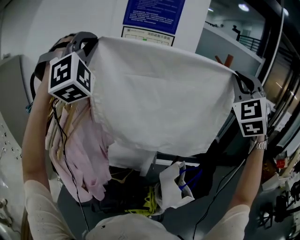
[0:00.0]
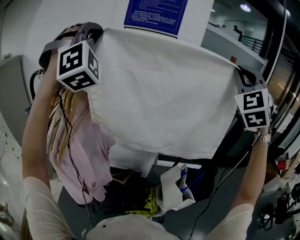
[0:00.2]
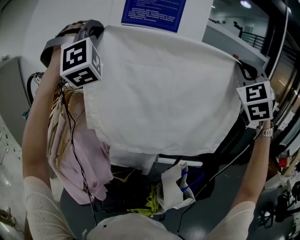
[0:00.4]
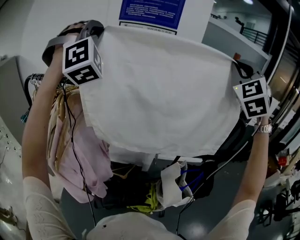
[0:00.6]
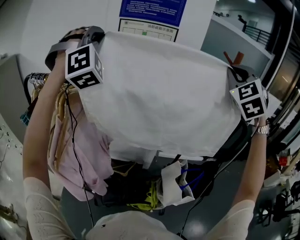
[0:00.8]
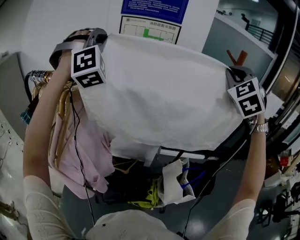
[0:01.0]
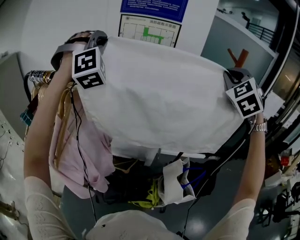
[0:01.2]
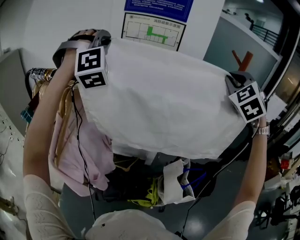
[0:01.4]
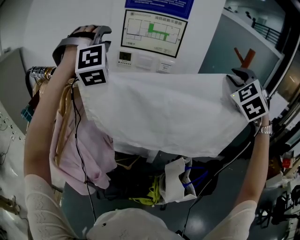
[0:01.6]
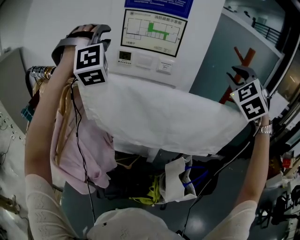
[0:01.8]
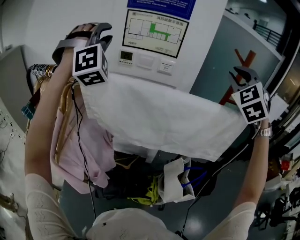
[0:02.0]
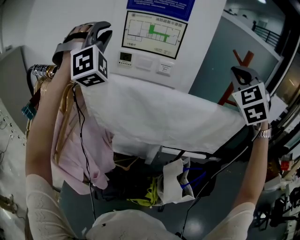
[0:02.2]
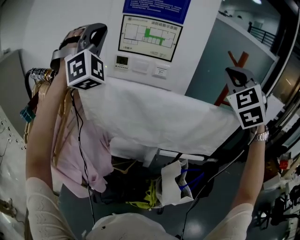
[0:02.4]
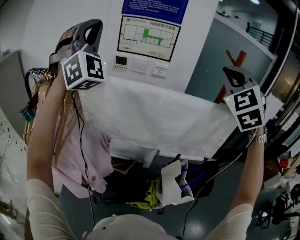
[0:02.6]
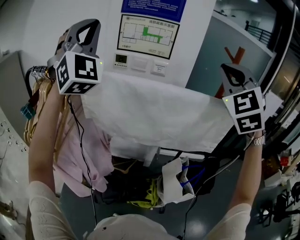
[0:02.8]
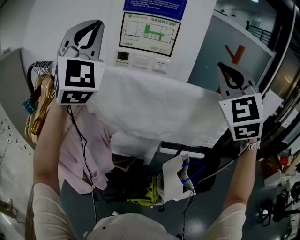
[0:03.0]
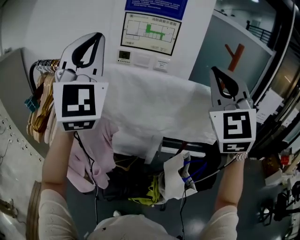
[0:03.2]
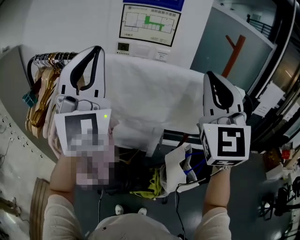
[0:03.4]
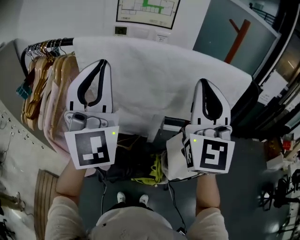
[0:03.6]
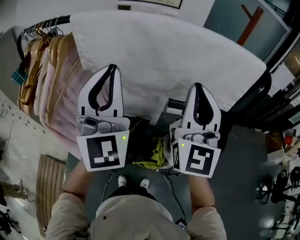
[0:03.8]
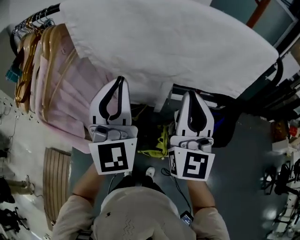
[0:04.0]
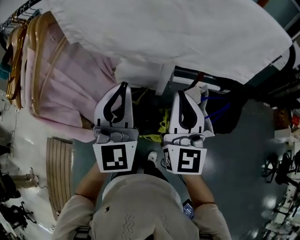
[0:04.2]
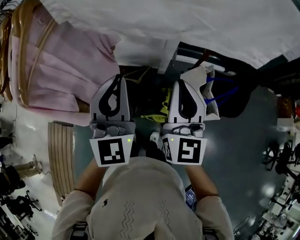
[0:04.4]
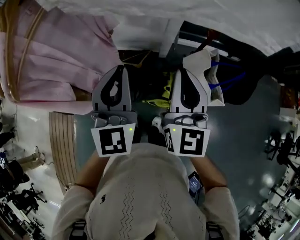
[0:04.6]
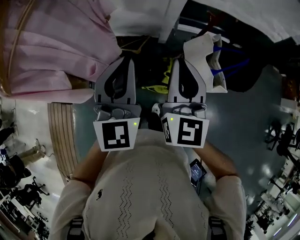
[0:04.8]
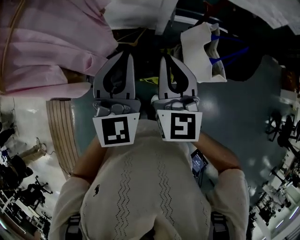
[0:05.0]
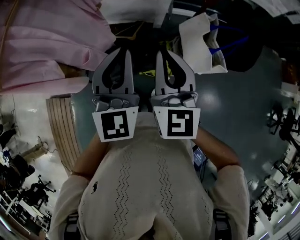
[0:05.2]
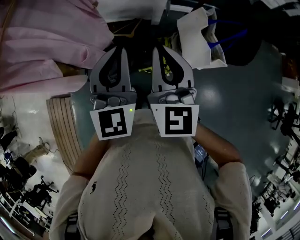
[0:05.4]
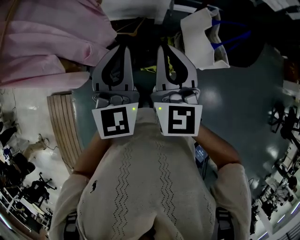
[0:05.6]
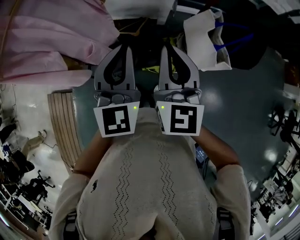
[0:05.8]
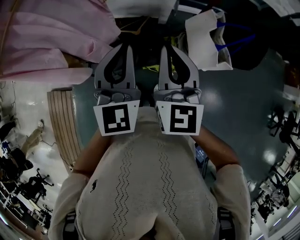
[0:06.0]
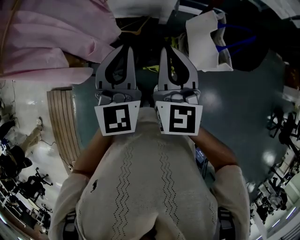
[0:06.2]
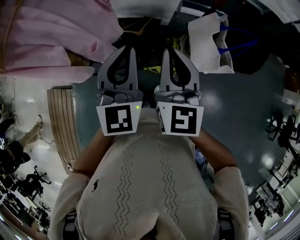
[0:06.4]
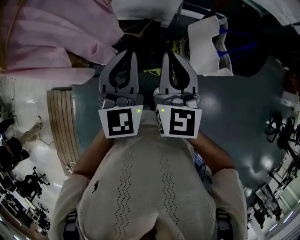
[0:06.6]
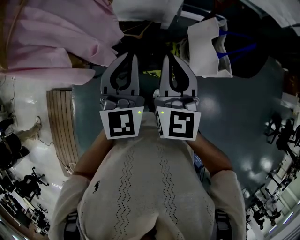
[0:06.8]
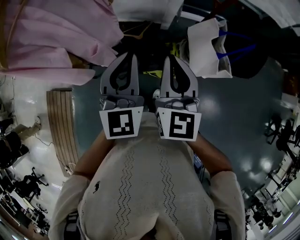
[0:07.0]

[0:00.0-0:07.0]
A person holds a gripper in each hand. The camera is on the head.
0:00.0 to 0:01.4: The right gripper moves forward and downward, about 20 cm, and changes its angle by some 30 degrees, while the left gripper is displaced forward by roughly 15 cm.
0:01.4 to 0:02.8: The left gripper travels backward and upward by roughly 15 cm, points its fingers some 30 degrees further upward, and opens, then closes again; the right gripper is displaced backward and to the left by some 10 cm.
0:02.8 to 0:04.2: Both grippers travel together downward, approximately 35 cm. The left gripper rolls counterclockwise, seen from behind, by about 50 degrees; the right gripper twists roughly 60 degrees clockwise, seen from behind.
0:04.2 to 0:05.6: Both grippers move downward and backward, about 15 cm.
0:05.6 to 0:07.0: There are only small adjustments of the grippers.

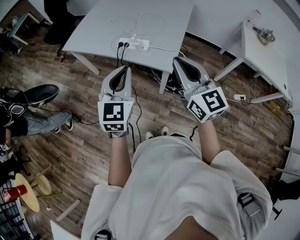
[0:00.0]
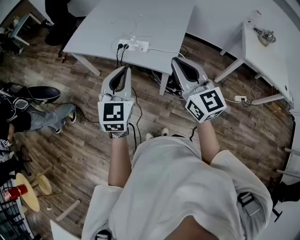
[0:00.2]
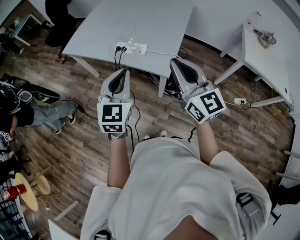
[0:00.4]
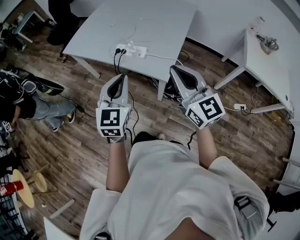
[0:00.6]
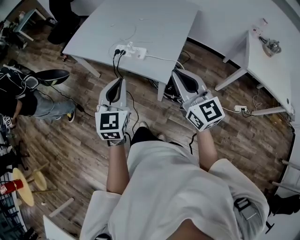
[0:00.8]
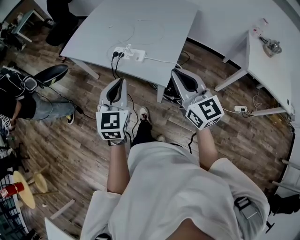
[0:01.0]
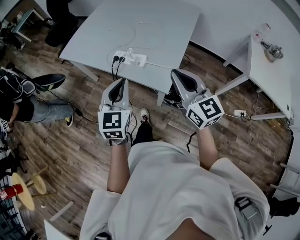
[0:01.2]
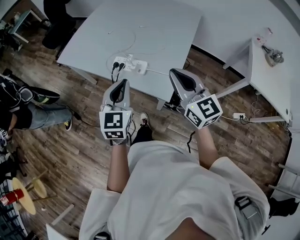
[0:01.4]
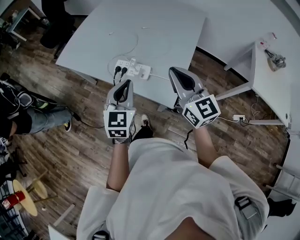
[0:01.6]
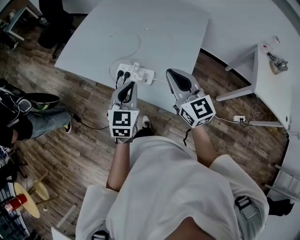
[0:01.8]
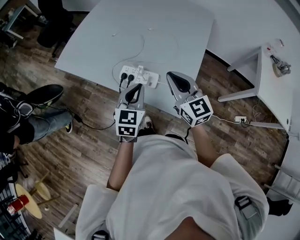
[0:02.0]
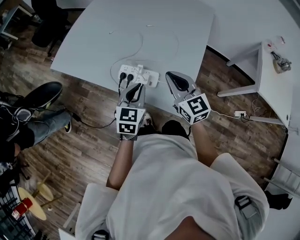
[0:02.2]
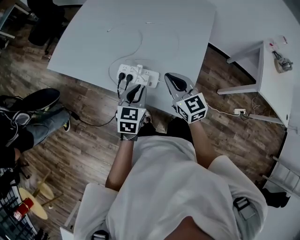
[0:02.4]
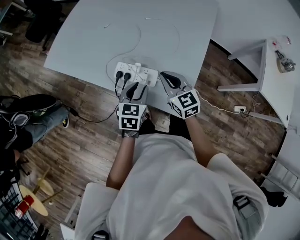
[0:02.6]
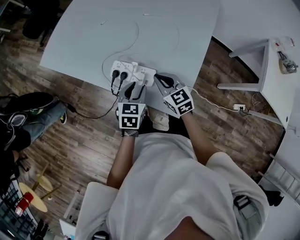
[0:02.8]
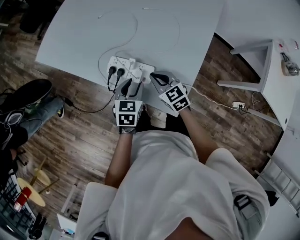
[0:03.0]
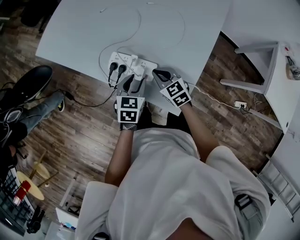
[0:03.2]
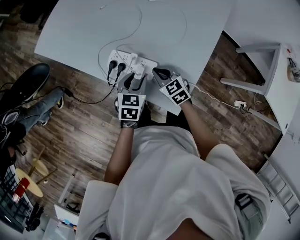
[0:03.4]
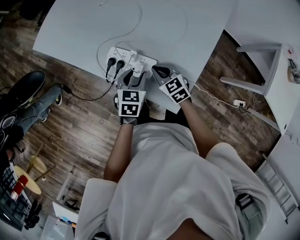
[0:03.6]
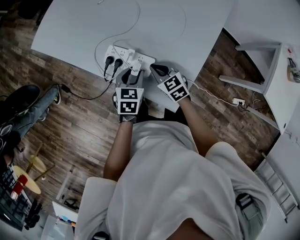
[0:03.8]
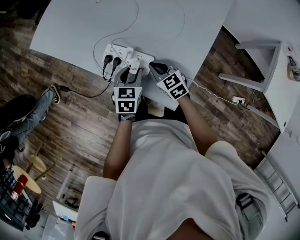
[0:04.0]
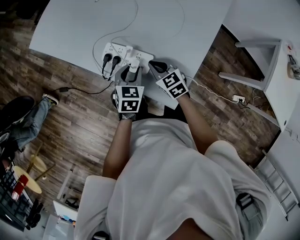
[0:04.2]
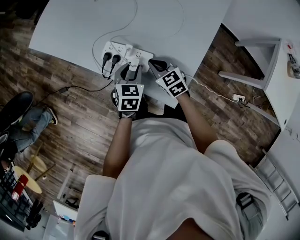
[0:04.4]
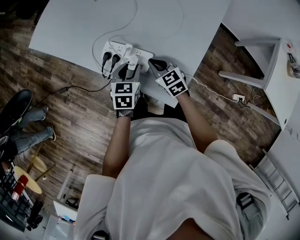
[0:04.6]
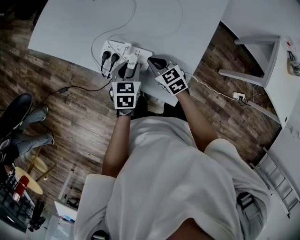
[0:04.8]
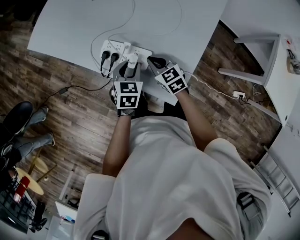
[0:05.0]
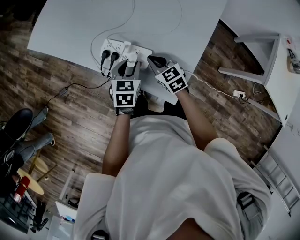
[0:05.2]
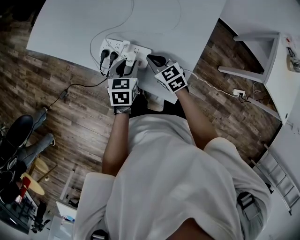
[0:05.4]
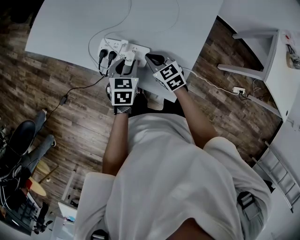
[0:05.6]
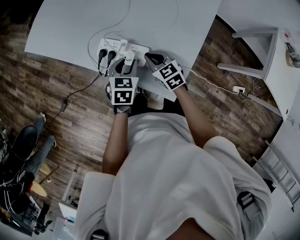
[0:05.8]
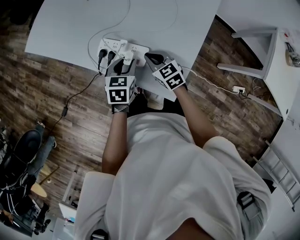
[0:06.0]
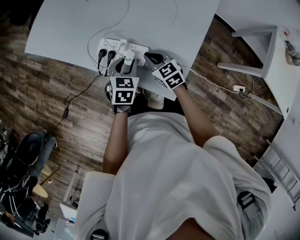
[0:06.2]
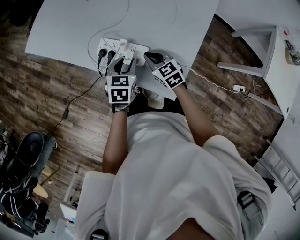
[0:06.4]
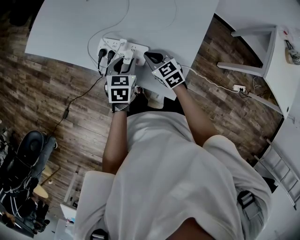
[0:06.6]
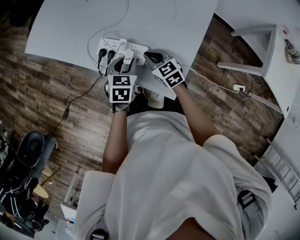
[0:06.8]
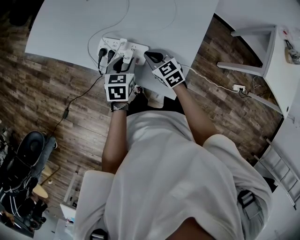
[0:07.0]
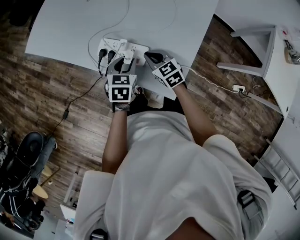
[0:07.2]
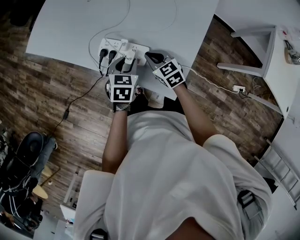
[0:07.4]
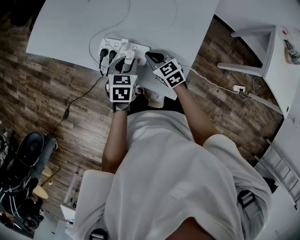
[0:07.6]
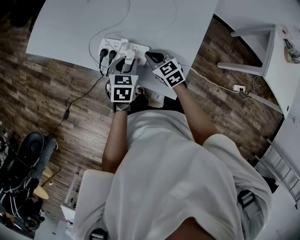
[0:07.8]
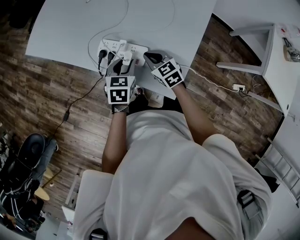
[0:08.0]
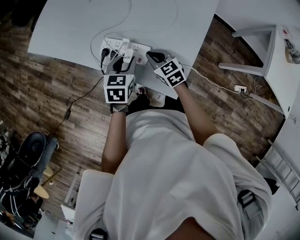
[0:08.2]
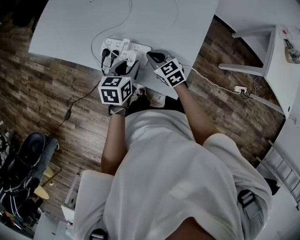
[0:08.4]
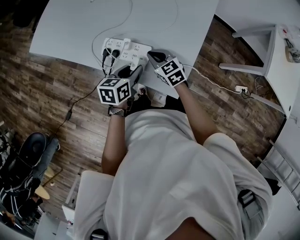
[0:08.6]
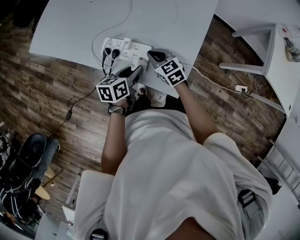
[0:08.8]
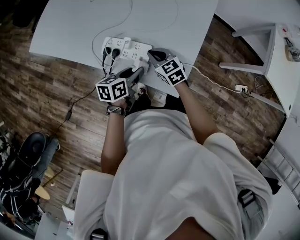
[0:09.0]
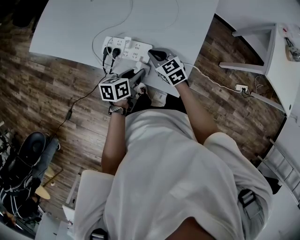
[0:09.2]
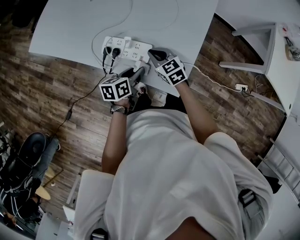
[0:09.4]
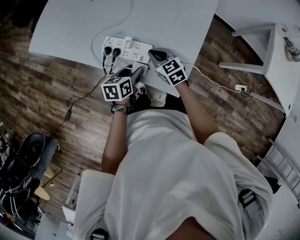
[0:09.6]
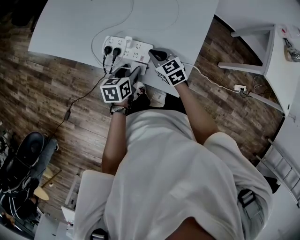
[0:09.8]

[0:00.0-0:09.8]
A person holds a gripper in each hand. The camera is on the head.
0:00.0 to 0:01.4: The right gripper heads forward, covering about 15 cm; the left gripper travels forward and downward by about 15 cm.
0:01.4 to 0:02.8: Both grippers move downward and forward, roughly 30 cm. The left gripper swivels approximately 30 degrees, and opens up. The right gripper rotates some 30 degrees.
0:02.8 to 0:04.2: The right gripper goes about 10 cm downward. Meanwhile the left gripper goes approximately 5 cm downward.
0:04.2 to 0:07.0: The grippers move only a little.
0:07.0 to 0:08.4: The grippers stay close to where they were, moving slightly.
0:08.4 to 0:09.8: The left gripper goes about 5 cm downward, and opens.

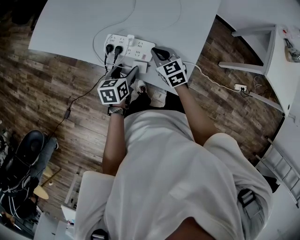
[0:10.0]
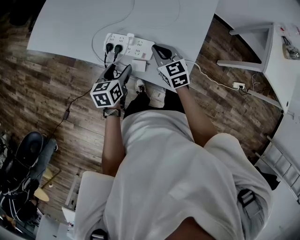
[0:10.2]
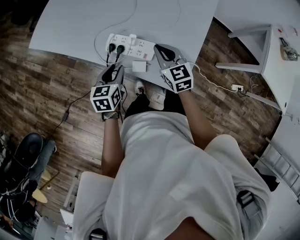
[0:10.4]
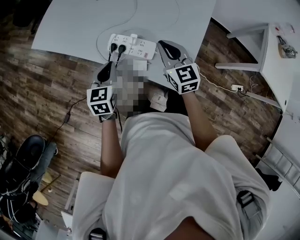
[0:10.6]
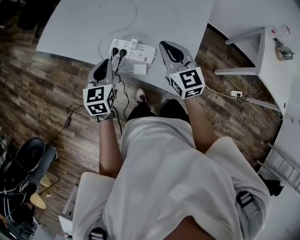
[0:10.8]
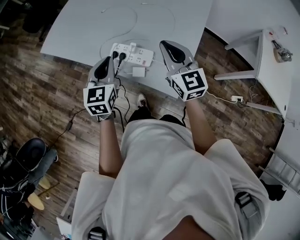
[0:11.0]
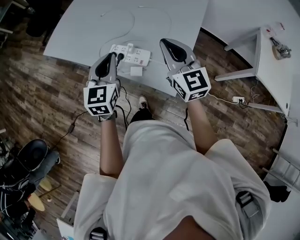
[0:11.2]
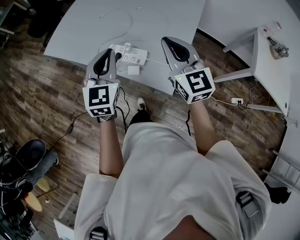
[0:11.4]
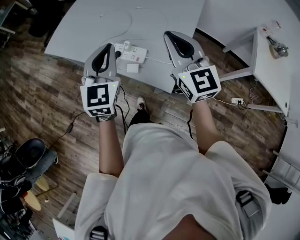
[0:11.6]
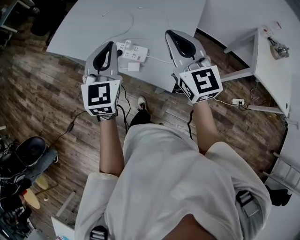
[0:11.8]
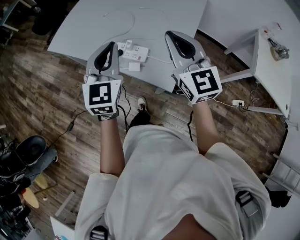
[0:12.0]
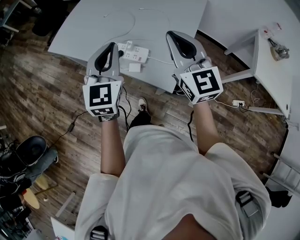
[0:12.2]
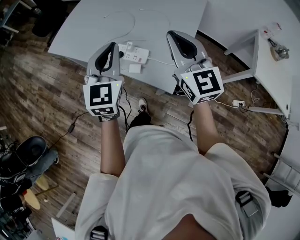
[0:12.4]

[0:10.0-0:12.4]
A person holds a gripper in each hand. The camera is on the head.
0:10.0 to 0:11.2: Both grippers move upward, some 25 cm. The right gripper tilts its fingers approximately 30 degrees upward. The left gripper turns by approximately 40 degrees, and closes up.
0:11.2 to 0:12.4: The grippers both shift upward by approximately 10 cm.

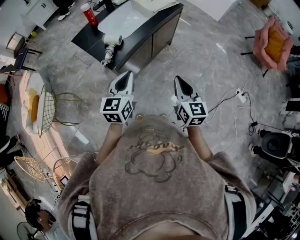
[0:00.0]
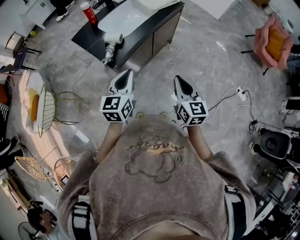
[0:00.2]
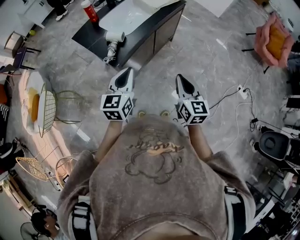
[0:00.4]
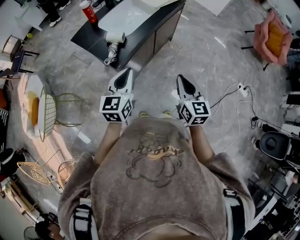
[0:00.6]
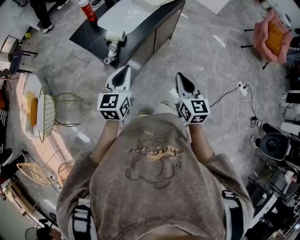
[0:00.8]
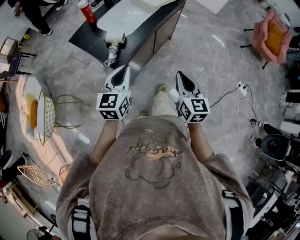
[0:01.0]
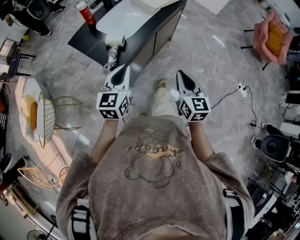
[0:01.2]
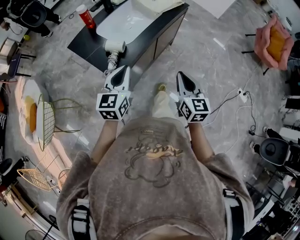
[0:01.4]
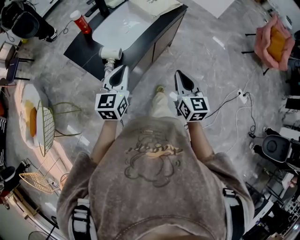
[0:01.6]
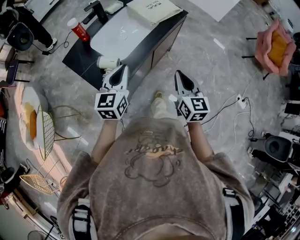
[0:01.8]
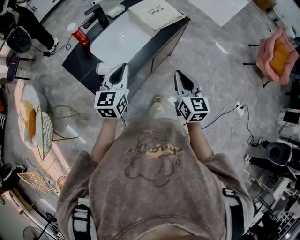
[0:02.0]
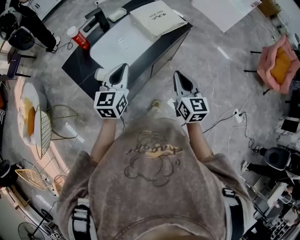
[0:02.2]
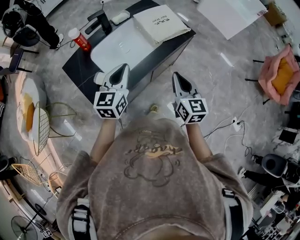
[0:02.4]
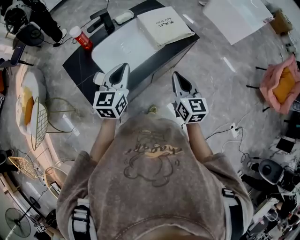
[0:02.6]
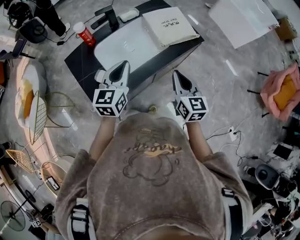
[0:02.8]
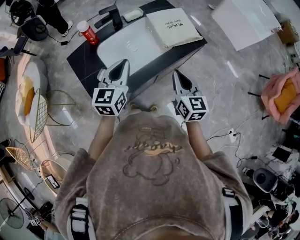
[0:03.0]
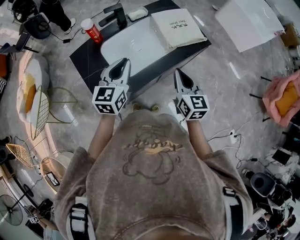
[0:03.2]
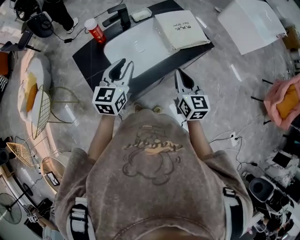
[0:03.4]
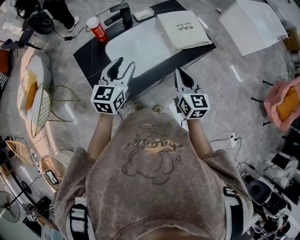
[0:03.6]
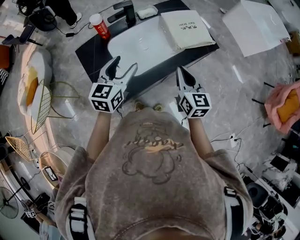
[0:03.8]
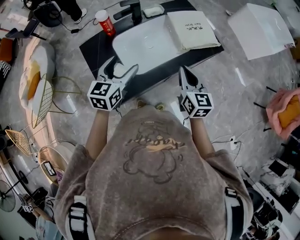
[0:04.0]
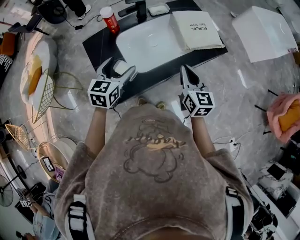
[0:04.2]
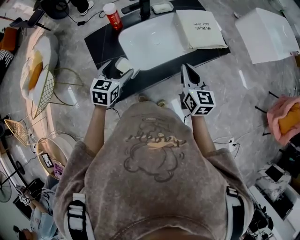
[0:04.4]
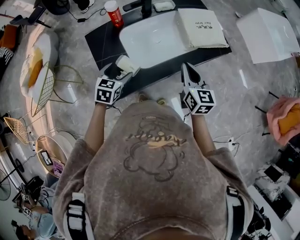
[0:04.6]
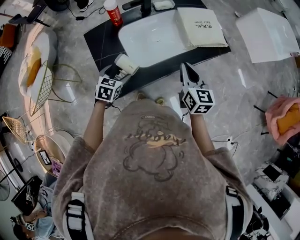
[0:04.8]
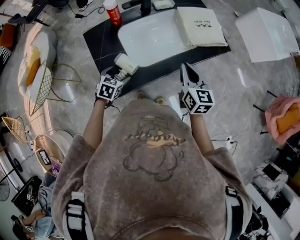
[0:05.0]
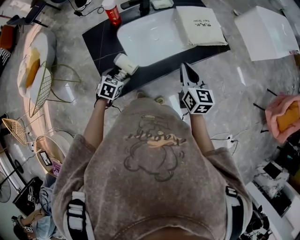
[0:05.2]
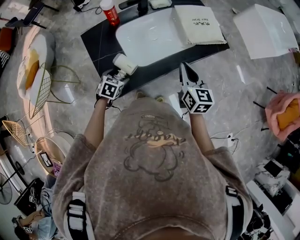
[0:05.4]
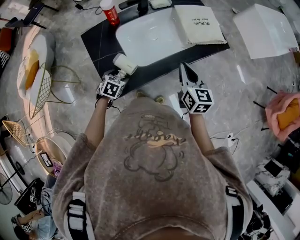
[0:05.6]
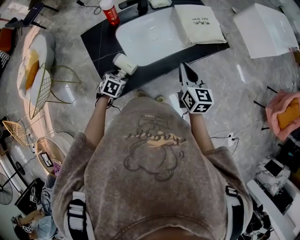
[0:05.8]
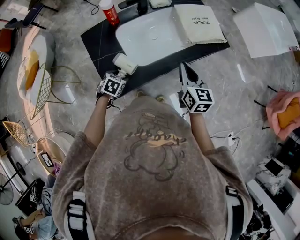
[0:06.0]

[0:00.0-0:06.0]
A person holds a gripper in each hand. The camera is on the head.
0:00.0 to 0:01.6: Both grippers move forward, approximately 15 cm.
0:01.6 to 0:03.0: The grippers both shift forward by roughly 25 cm.
0:03.0 to 0:04.4: The right gripper heads to the left, covering approximately 5 cm. The left gripper shifts some 15 cm to the left and downward, turns by about 20 degrees, and opens up.
0:04.4 to 0:06.0: The left gripper goes some 15 cm downward, and angles its fingers downward, by approximately 30 degrees.
